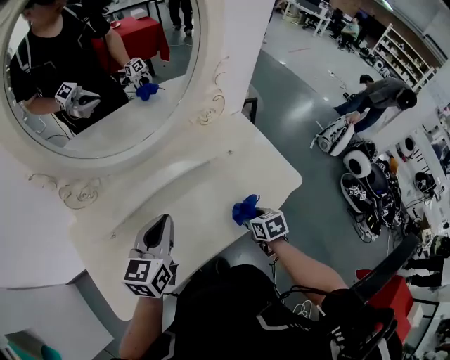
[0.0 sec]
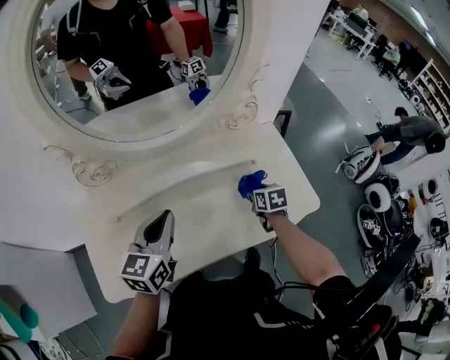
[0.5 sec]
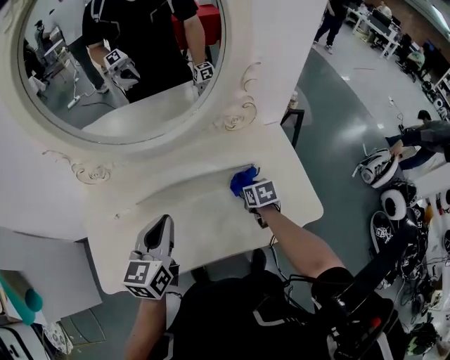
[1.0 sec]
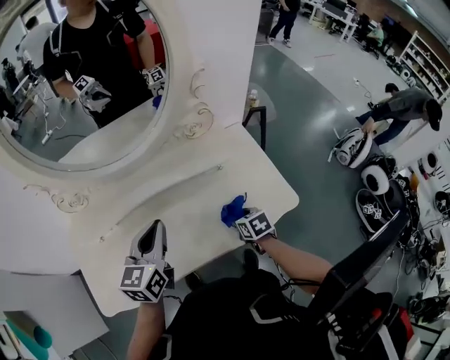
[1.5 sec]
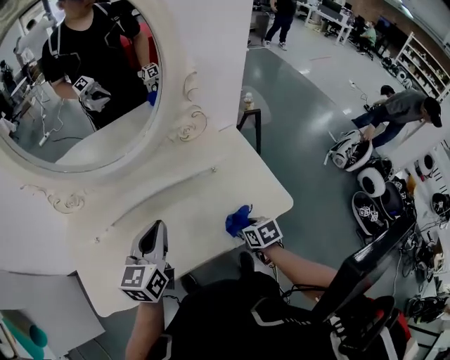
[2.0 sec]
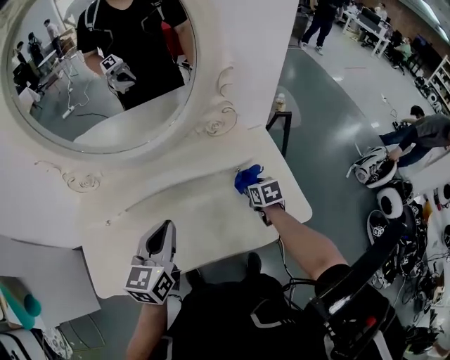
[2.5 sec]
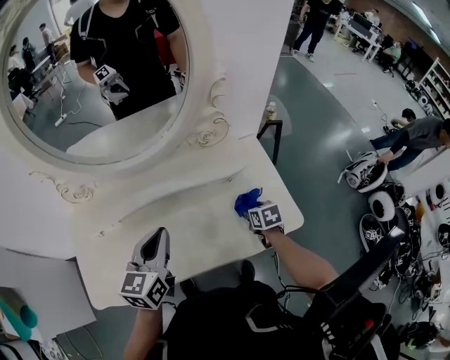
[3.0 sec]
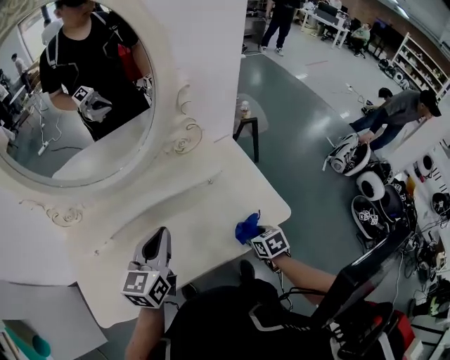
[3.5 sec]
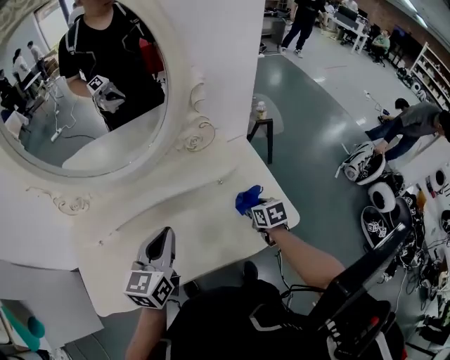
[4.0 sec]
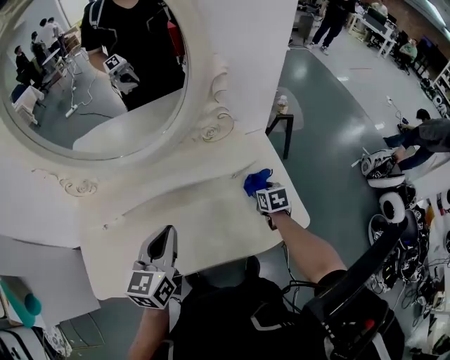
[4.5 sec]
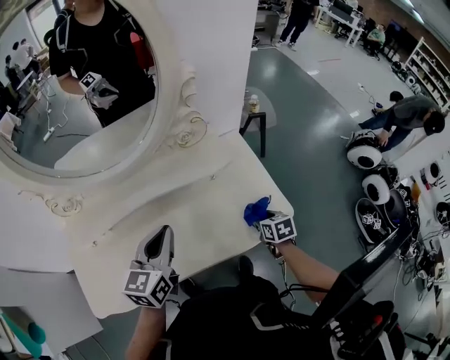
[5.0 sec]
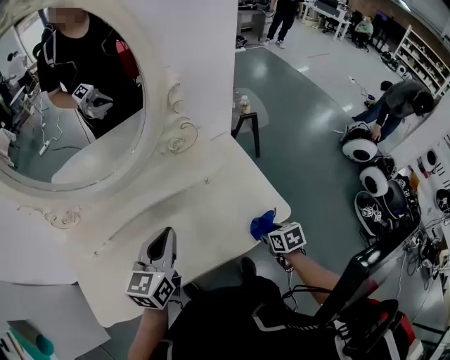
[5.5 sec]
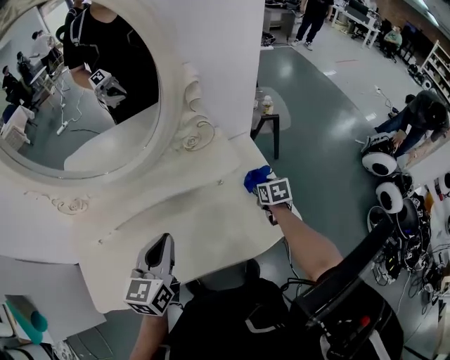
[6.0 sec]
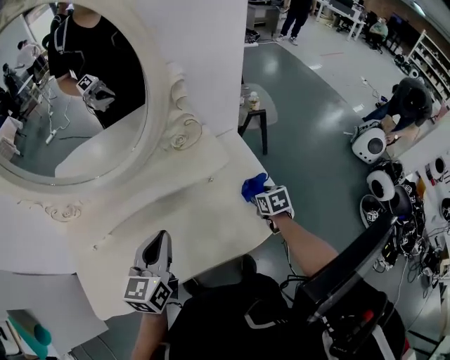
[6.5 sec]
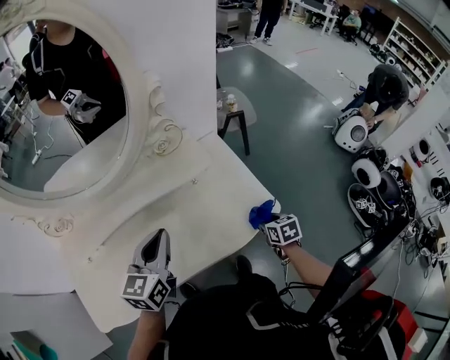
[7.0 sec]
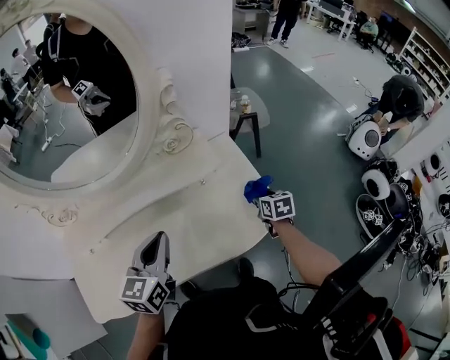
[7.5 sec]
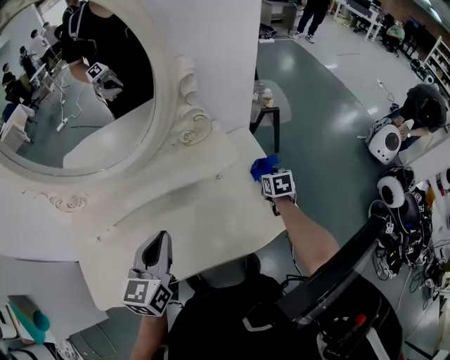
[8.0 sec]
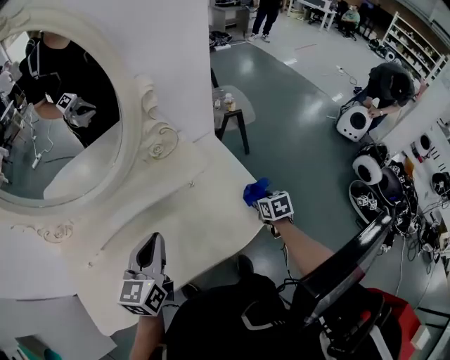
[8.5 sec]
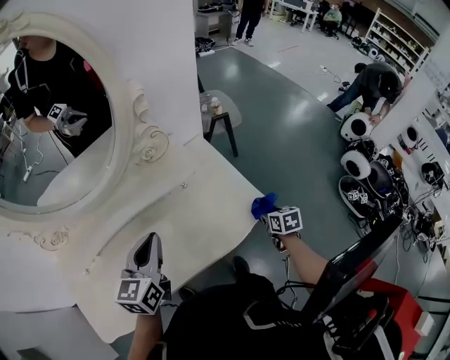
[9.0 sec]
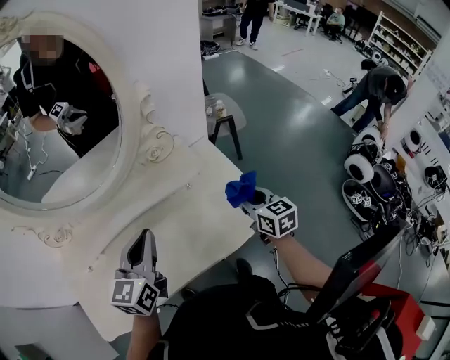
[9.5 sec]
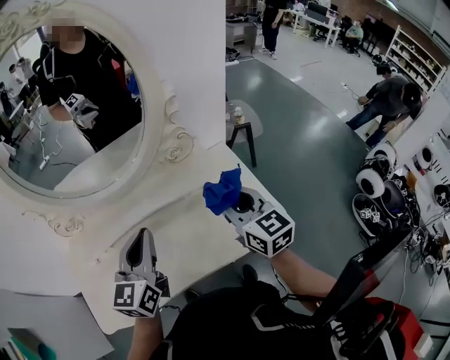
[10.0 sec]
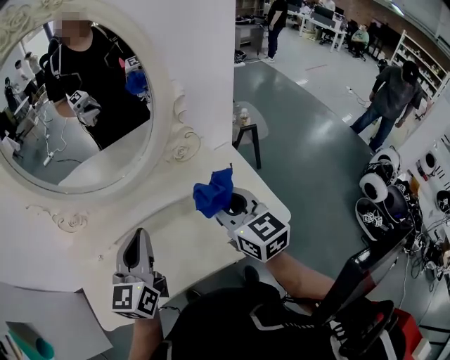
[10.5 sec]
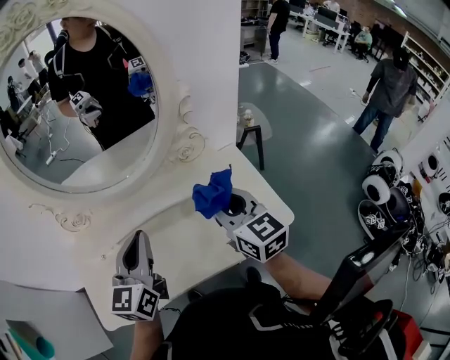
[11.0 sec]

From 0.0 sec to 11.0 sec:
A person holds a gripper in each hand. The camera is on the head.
From 0.0 sec to 2.0 sec: The two grippers go about 10 cm to the right. The right gripper travels forward and back again, roughly 15 cm each way.
From 2.0 sec to 3.5 sec: The right gripper reaches approximately 15 cm forward, then returns.
From 3.5 sec to 5.5 sec: The right gripper is displaced to the right by about 5 cm, and goes forward and returns, some 20 cm each way.
From 5.5 sec to 7.5 sec: The right gripper moves forward and backward over about 20 cm, changing direction 2 times.
From 7.5 sec to 9.0 sec: The right gripper shifts approximately 10 cm backward and to the right.
From 9.0 sec to 11.0 sec: The left gripper goes some 10 cm to the left and upward. The right gripper travels upward and to the left by about 40 cm, and angles its fingers upward, by approximately 40 degrees.

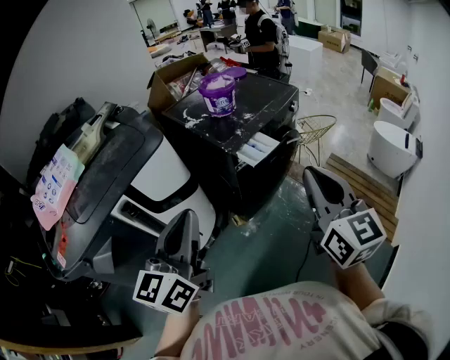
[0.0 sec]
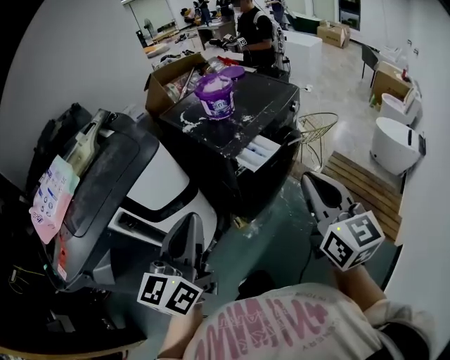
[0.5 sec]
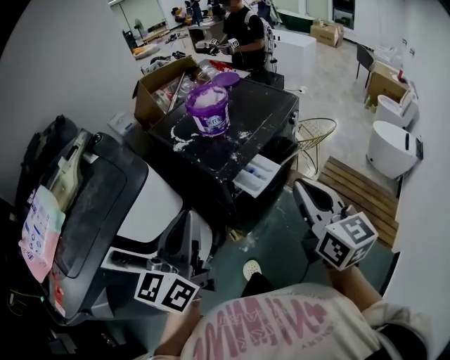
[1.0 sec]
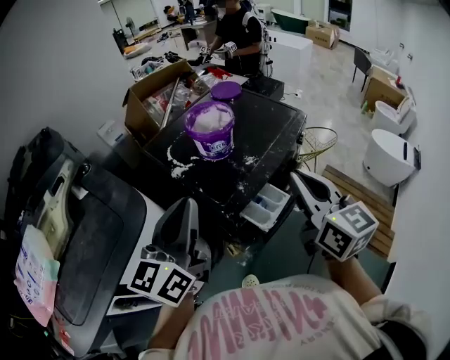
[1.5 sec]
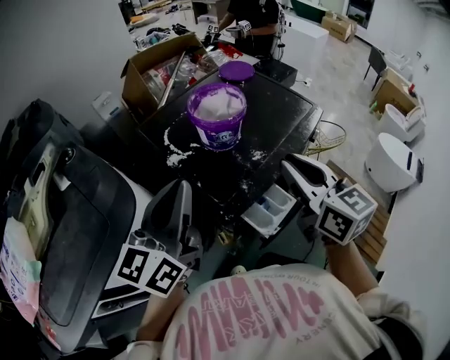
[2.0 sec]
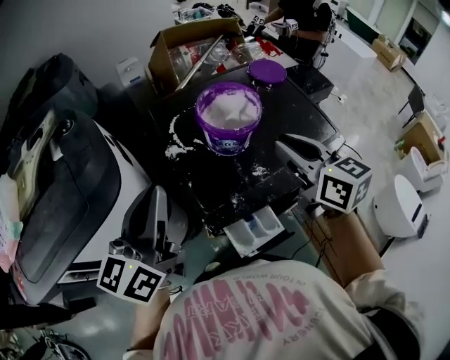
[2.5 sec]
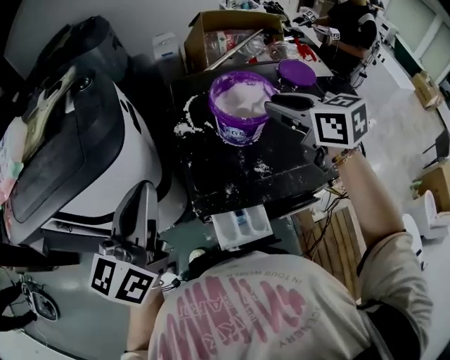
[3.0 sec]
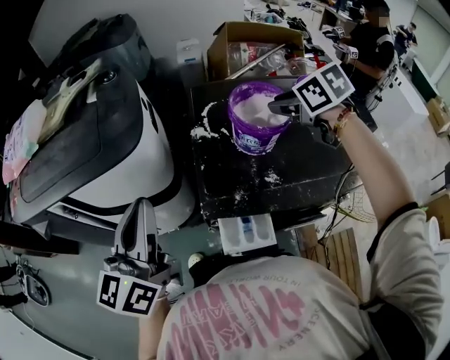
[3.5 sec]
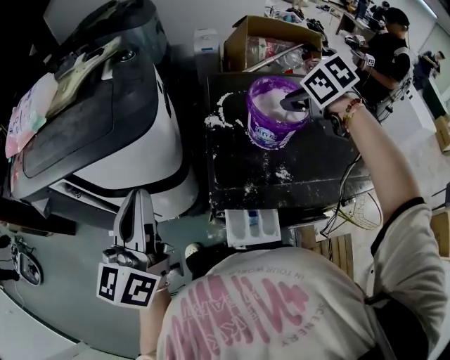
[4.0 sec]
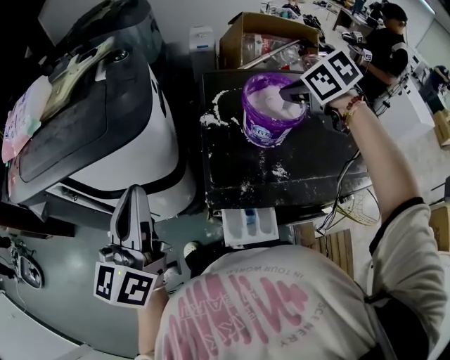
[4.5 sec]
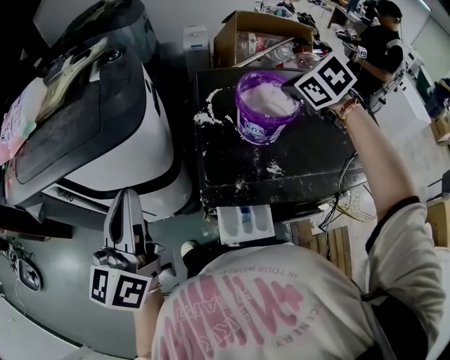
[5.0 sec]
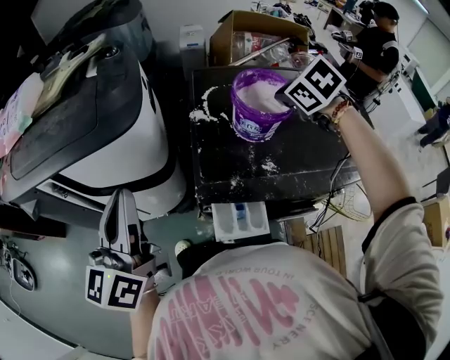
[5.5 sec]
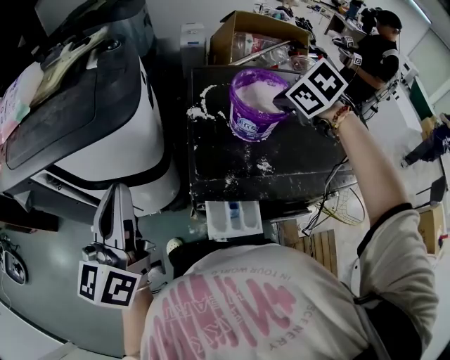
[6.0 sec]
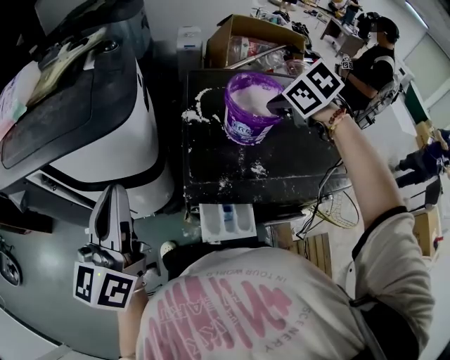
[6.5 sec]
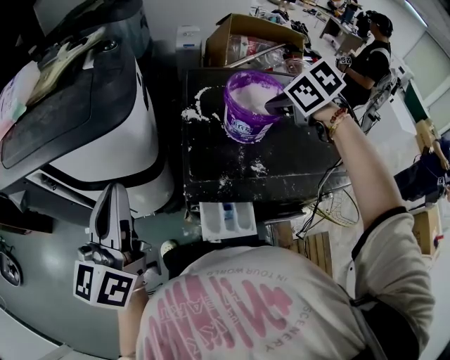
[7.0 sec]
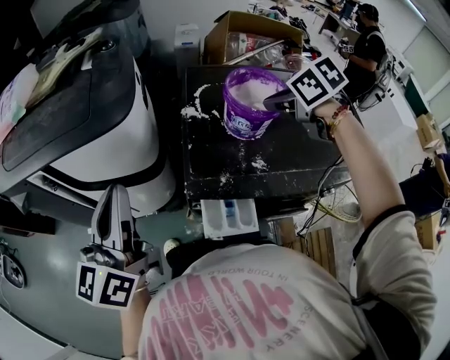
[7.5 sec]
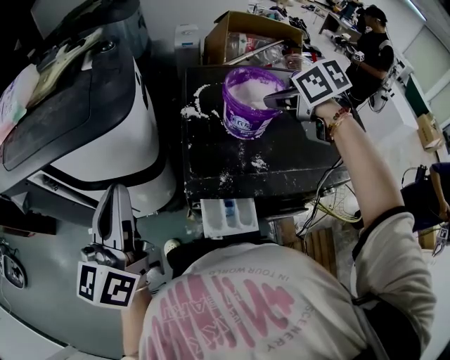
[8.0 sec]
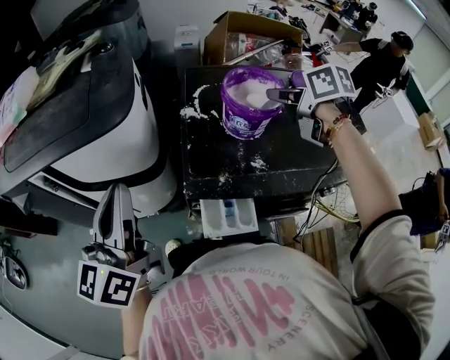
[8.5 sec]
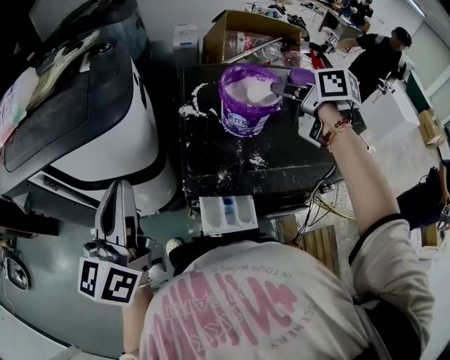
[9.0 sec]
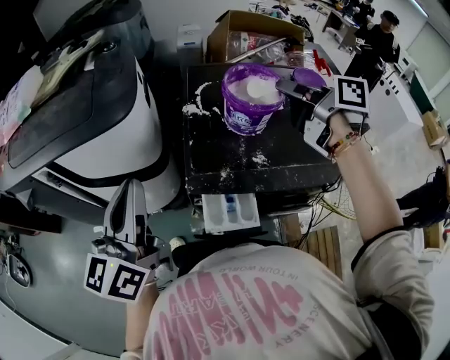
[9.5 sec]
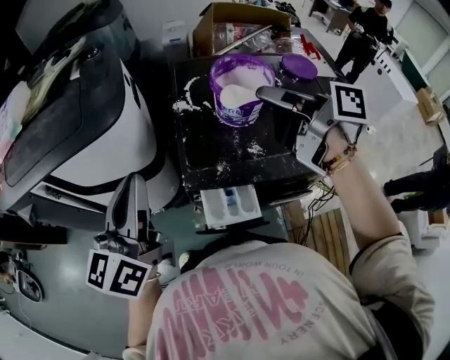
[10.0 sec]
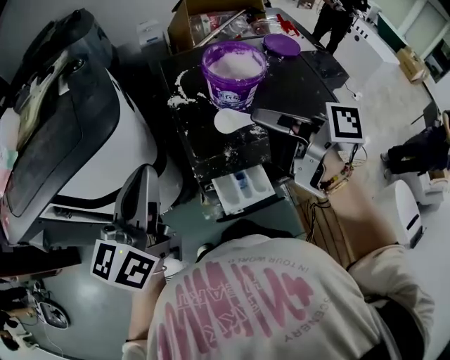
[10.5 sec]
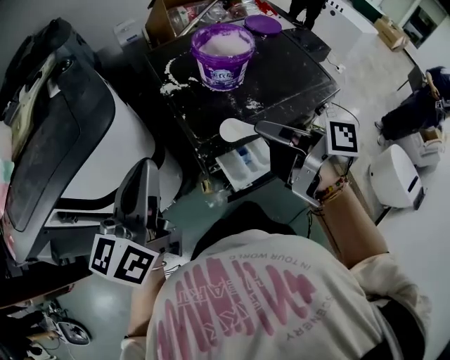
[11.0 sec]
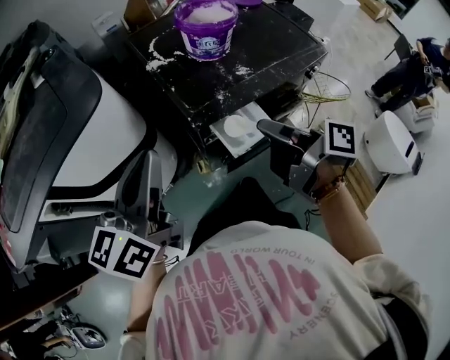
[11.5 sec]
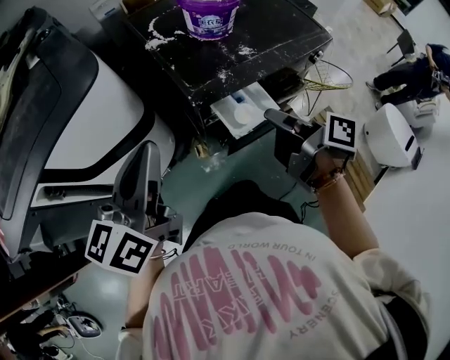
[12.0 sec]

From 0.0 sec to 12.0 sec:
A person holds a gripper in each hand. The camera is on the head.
From 0.0 sec to 2.0 sec: Both grippers move forward, roughly 35 cm.
From 2.0 sec to 4.0 sec: The left gripper ends up about 10 cm from where it was, and swivels approximately 50 degrees. The right gripper changes place by about 25 cm, and angles its fingers downward, by roughly 50 degrees.
From 4.0 sec to 6.0 sec: The right gripper closes up.
From 6.0 sec to 8.0 sec: The right gripper turns by about 30 degrees.
From 8.0 sec to 10.0 sec: The right gripper moves upward and backward, approximately 10 cm, and tips its fingers upward by some 40 degrees.
From 10.0 sec to 12.0 sec: The left gripper moves about 10 cm, and rotates approximately 30 degrees. The right gripper shifts by approximately 30 cm, and turns by some 40 degrees.

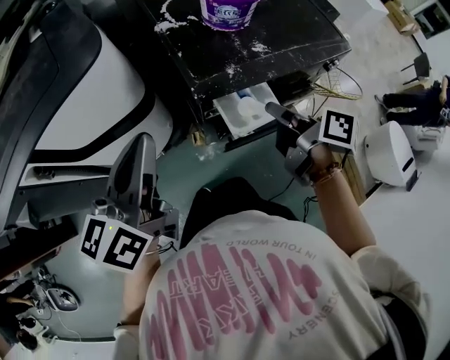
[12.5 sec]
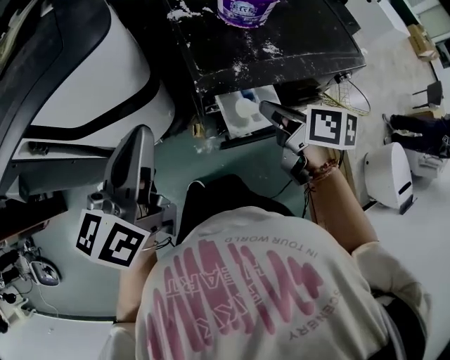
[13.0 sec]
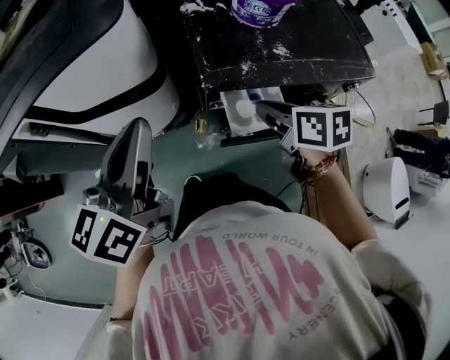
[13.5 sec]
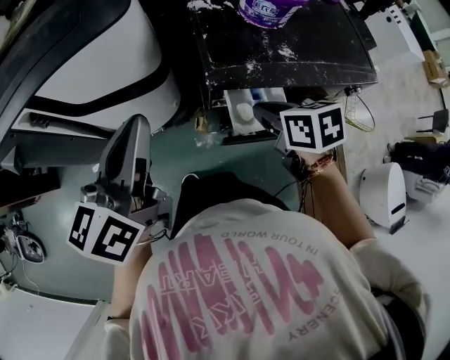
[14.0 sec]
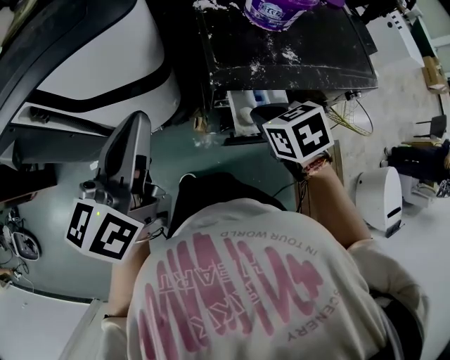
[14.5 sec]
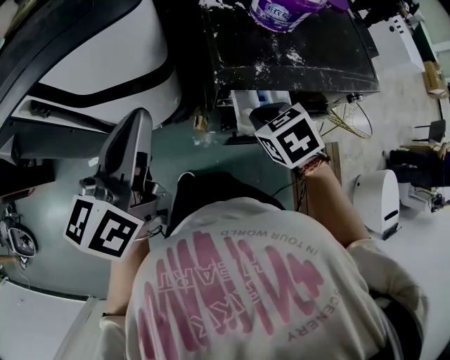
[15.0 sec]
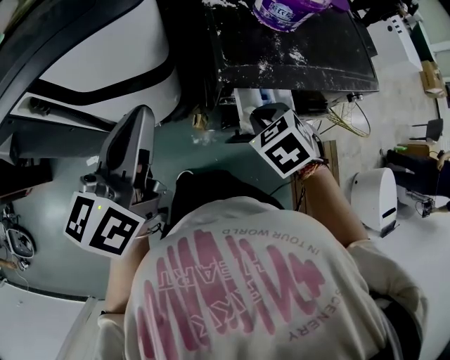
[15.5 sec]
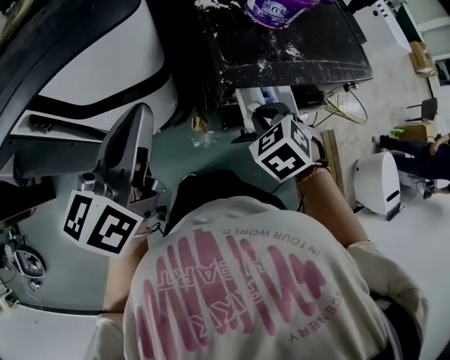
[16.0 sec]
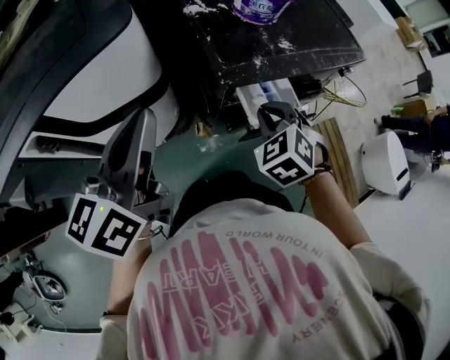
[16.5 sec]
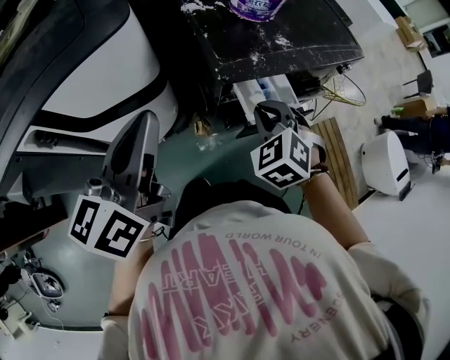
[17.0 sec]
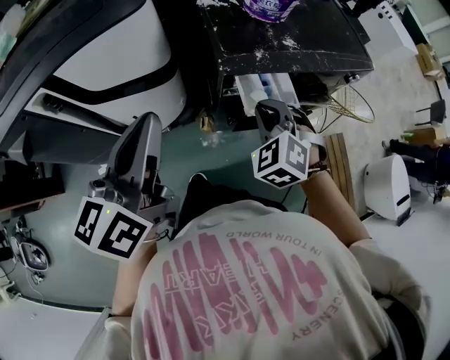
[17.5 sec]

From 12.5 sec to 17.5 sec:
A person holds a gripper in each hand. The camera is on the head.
From 12.5 sec to 15.0 sec: The right gripper is displaced to the left and downward by approximately 10 cm, and rotates around the line of its fingers by approximately 70 degrees, counterclockwise from behind.
From 15.0 sec to 17.5 sec: The right gripper changes its angle by some 40 degrees.
